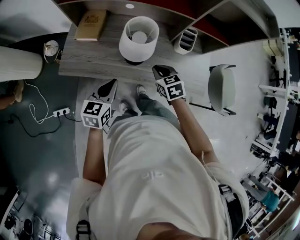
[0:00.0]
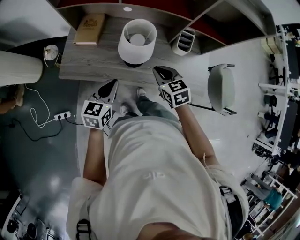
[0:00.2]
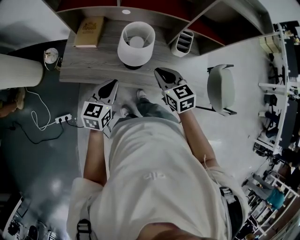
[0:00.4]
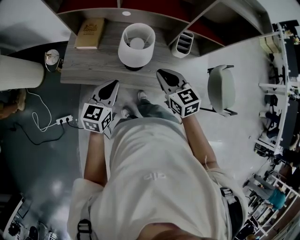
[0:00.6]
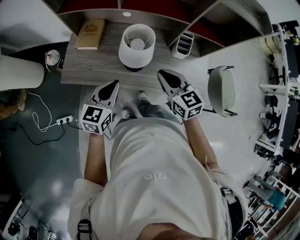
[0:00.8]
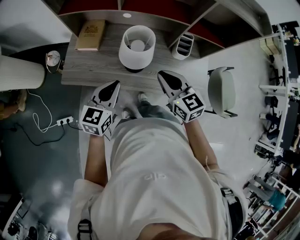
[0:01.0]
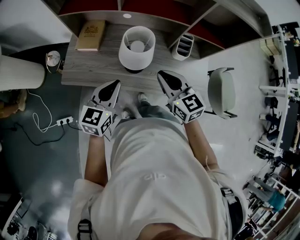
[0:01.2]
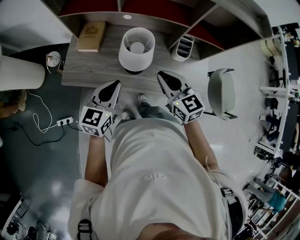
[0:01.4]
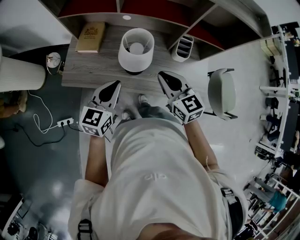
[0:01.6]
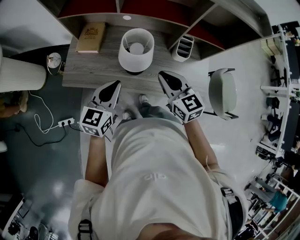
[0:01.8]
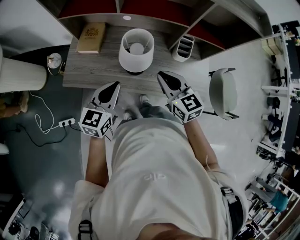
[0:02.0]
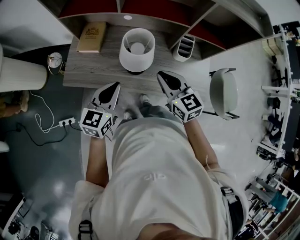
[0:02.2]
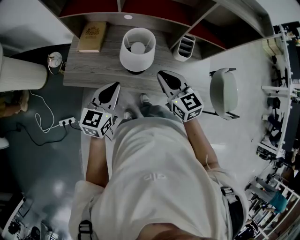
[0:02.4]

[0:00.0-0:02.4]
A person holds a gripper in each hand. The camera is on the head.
0:00.0 to 0:01.2: The left gripper shifts roughly 10 cm upward; the right gripper is displaced upward by approximately 15 cm, and turns by some 30 degrees.
0:01.2 to 0:02.4: The grippers move only a little.

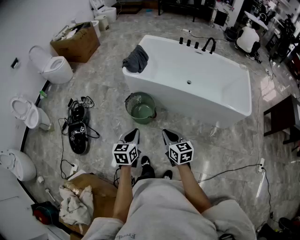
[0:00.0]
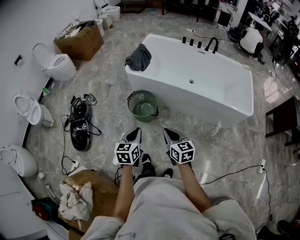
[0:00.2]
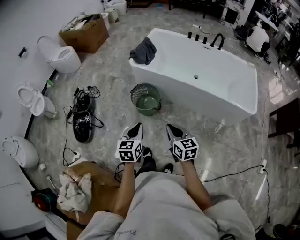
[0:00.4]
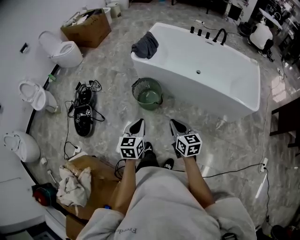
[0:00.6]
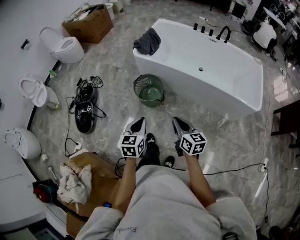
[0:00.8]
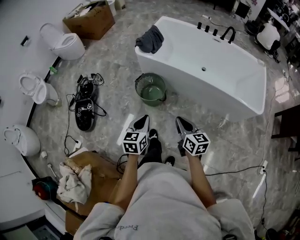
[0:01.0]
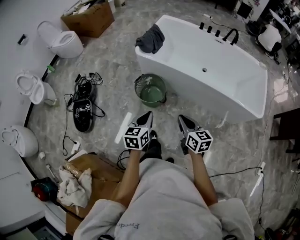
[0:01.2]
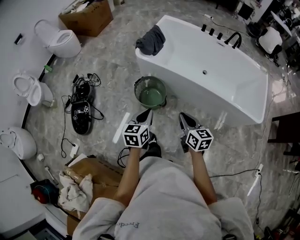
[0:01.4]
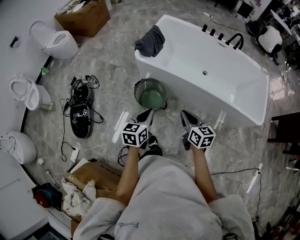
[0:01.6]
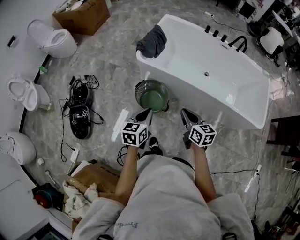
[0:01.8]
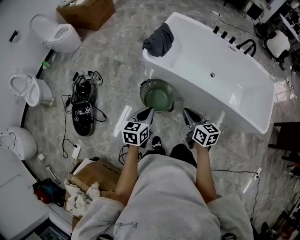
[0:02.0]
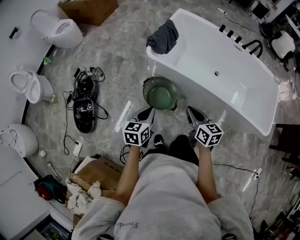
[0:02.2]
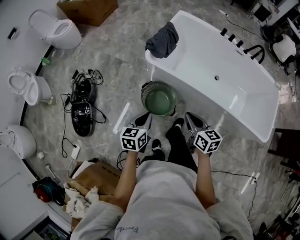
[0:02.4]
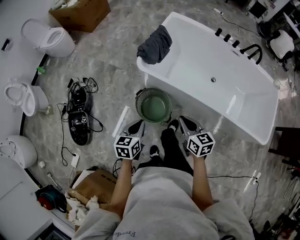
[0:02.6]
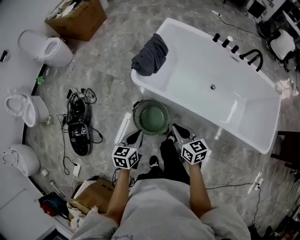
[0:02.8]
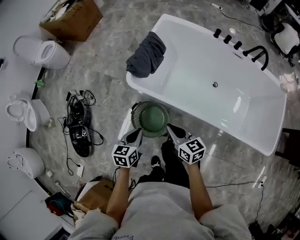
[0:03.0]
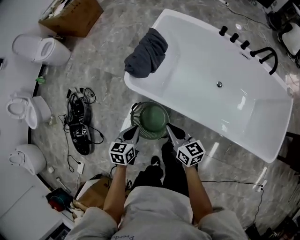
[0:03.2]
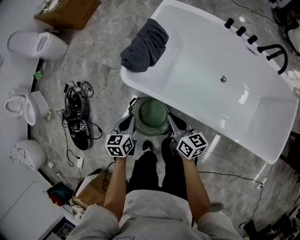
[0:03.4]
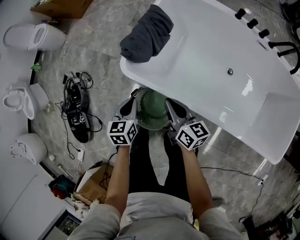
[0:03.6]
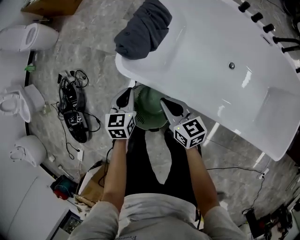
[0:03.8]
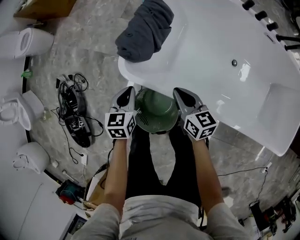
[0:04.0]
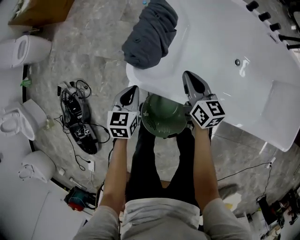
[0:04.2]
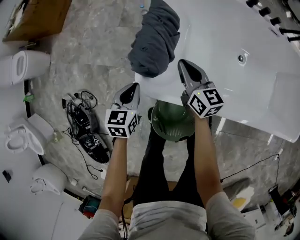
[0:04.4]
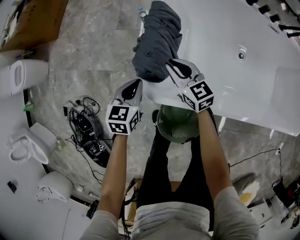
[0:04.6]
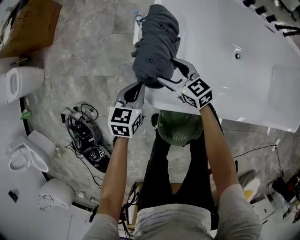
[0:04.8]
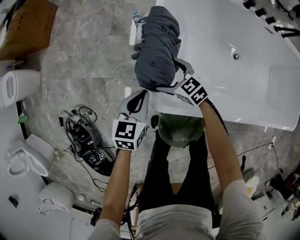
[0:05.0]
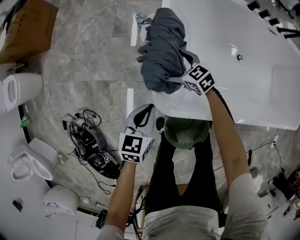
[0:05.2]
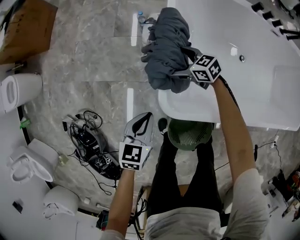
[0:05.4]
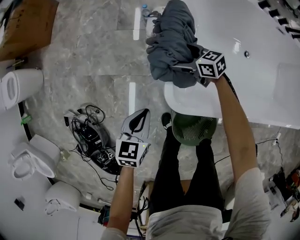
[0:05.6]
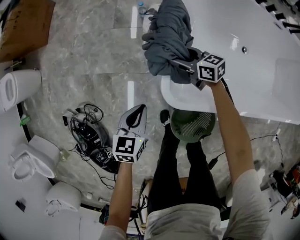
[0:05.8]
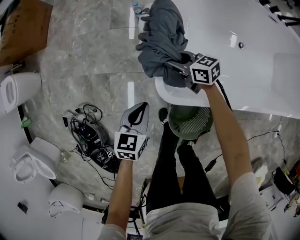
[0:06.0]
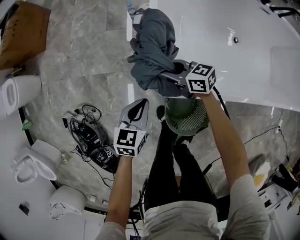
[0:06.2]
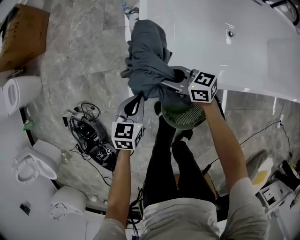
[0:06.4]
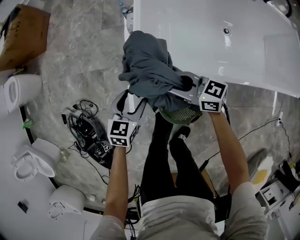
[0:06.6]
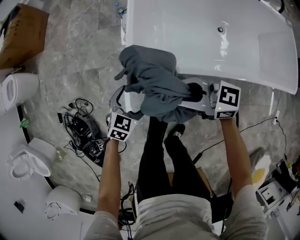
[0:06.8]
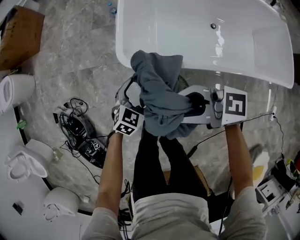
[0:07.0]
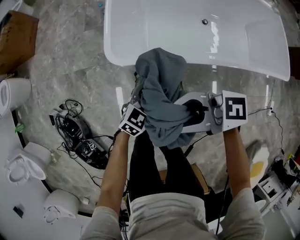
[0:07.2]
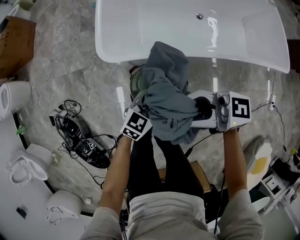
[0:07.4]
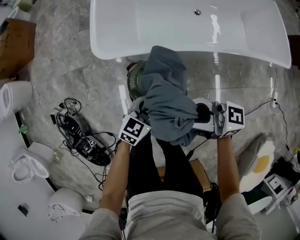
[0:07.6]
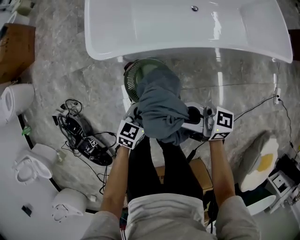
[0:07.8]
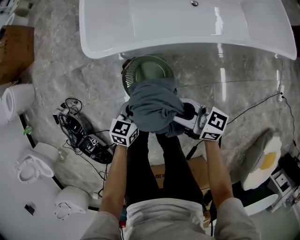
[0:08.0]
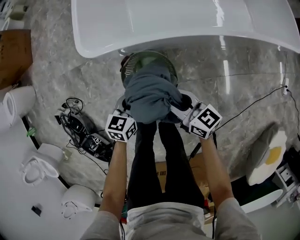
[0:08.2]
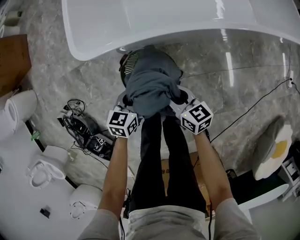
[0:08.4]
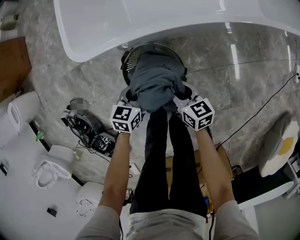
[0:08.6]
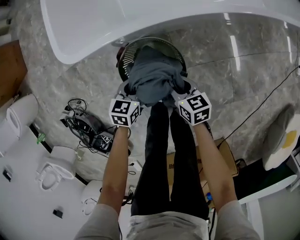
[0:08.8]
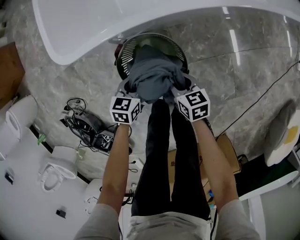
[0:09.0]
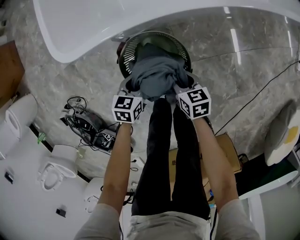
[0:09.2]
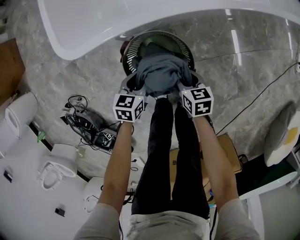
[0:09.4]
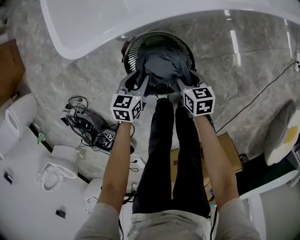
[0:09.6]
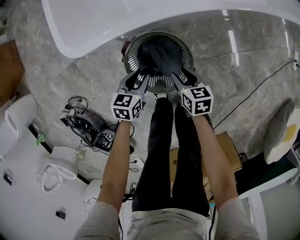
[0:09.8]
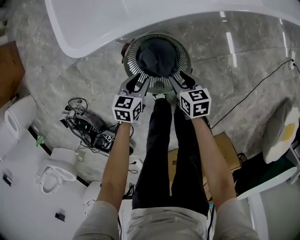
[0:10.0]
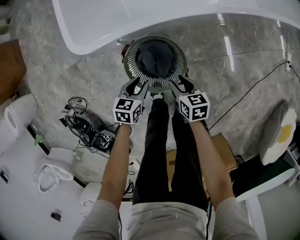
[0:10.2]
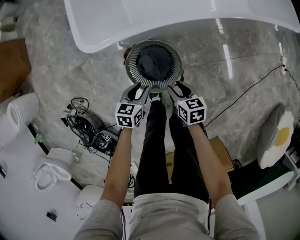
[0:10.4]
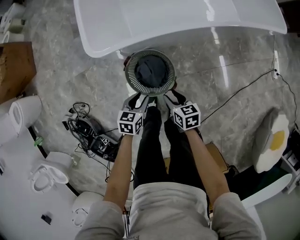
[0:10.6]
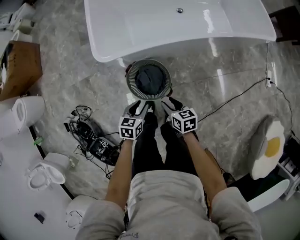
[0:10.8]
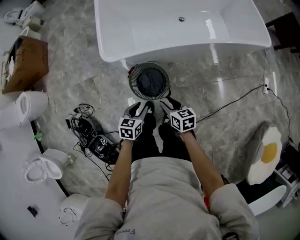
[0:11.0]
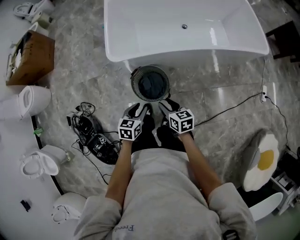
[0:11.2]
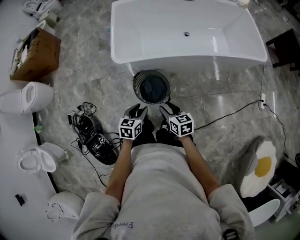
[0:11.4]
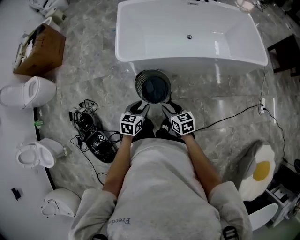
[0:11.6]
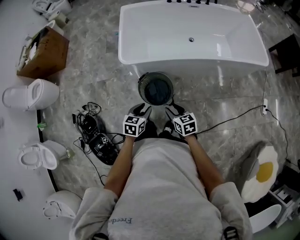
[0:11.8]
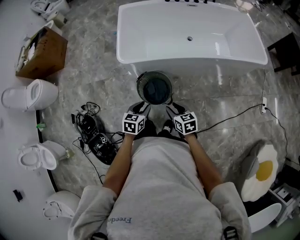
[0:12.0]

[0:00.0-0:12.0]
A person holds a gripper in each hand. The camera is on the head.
0:00.0 to 0:01.6: The two grippers go about 15 cm forward.
0:01.6 to 0:03.0: The left gripper shifts approximately 30 cm forward and downward; the right gripper is displaced forward by approximately 30 cm.
0:03.0 to 0:04.4: The grippers both shift forward by some 35 cm. The right gripper turns by about 20 degrees.
0:04.4 to 0:06.0: The left gripper goes about 5 cm to the left; the right gripper is displaced to the left, downward and forward by some 20 cm, swivels some 30 degrees, and opens, then closes again.
0:06.0 to 0:07.6: The two grippers travel together, some 40 cm. The right gripper angles its fingers upward, by roughly 40 degrees, while the left gripper turns by about 30 degrees, and opens, then closes again.
0:07.6 to 0:09.0: The left gripper moves downward, about 25 cm, and changes its angle by approximately 20 degrees. The right gripper is displaced downward by approximately 40 cm, and tilts its fingers approximately 60 degrees downward.
0:09.0 to 0:10.4: The right gripper goes approximately 10 cm upward. Meanwhile the left gripper shifts roughly 10 cm upward and backward.
0:10.4 to 0:12.0: Both grippers travel together upward and backward, some 30 cm. The right gripper rotates roughly 20 degrees.

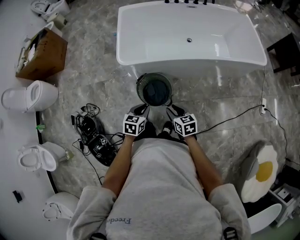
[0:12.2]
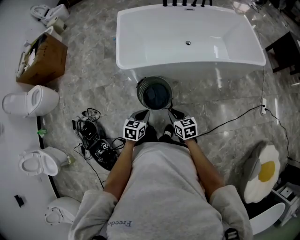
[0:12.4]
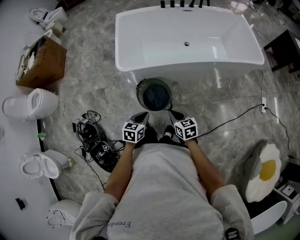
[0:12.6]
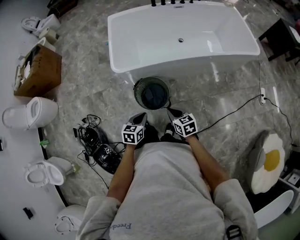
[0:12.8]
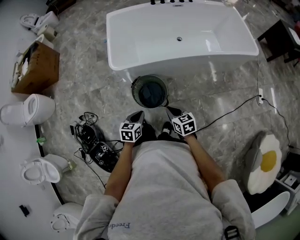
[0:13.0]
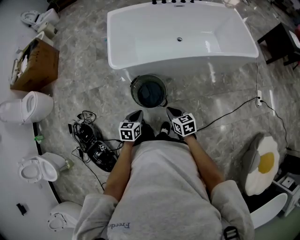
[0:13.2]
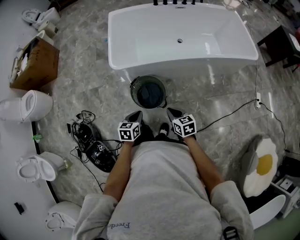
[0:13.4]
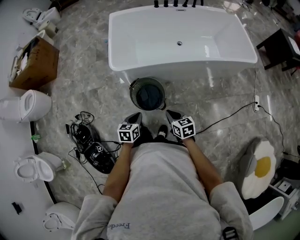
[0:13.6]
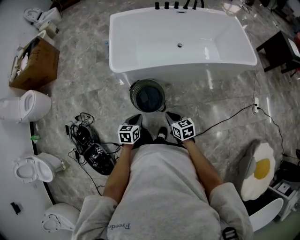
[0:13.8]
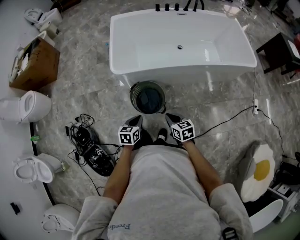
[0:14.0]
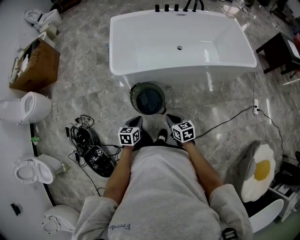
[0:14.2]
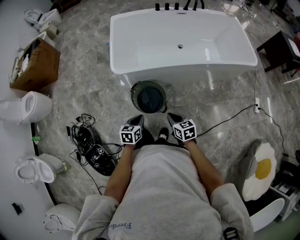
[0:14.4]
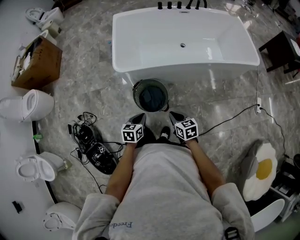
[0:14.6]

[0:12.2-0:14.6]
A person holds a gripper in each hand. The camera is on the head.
0:12.2 to 0:13.4: The grippers stay close to where they were, moving slightly.
0:13.4 to 0:14.6: Both grippers stay about where they are.

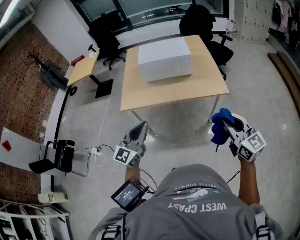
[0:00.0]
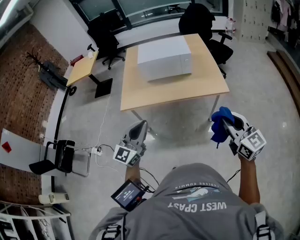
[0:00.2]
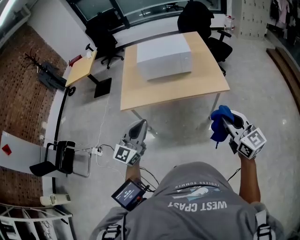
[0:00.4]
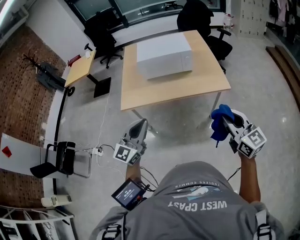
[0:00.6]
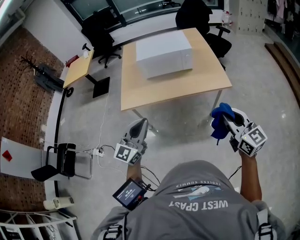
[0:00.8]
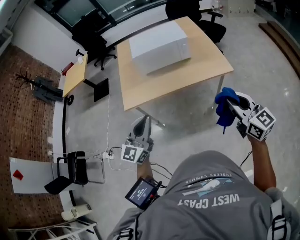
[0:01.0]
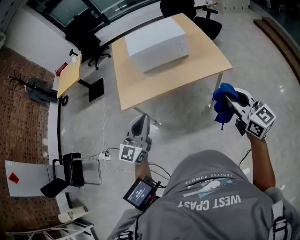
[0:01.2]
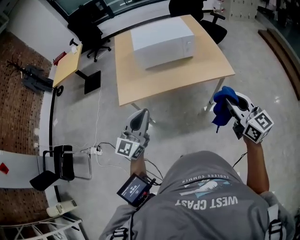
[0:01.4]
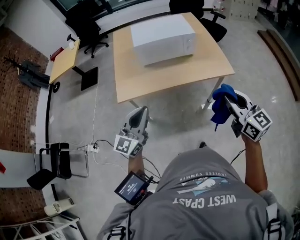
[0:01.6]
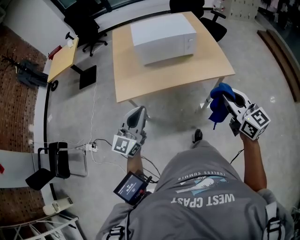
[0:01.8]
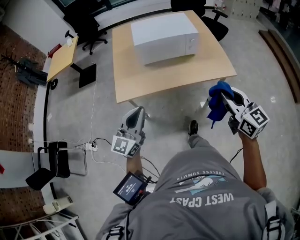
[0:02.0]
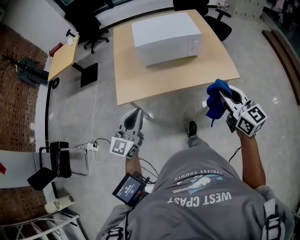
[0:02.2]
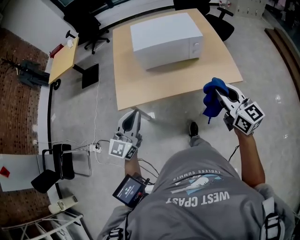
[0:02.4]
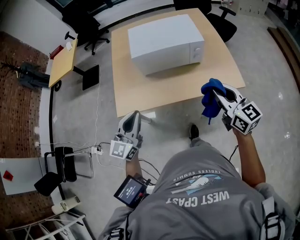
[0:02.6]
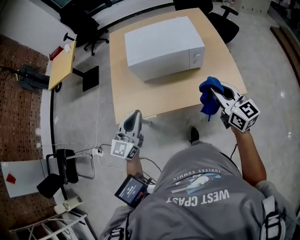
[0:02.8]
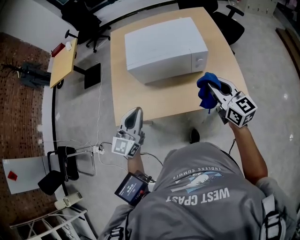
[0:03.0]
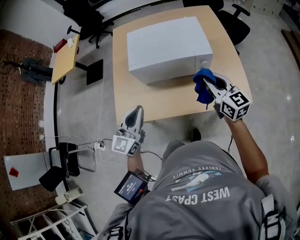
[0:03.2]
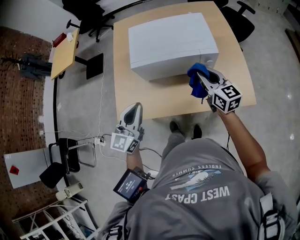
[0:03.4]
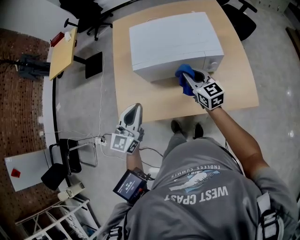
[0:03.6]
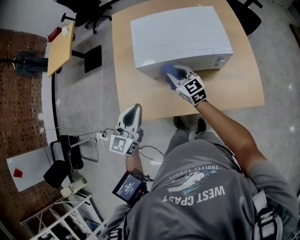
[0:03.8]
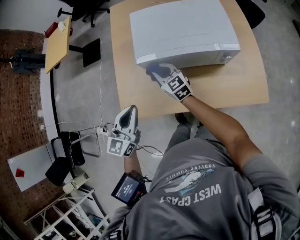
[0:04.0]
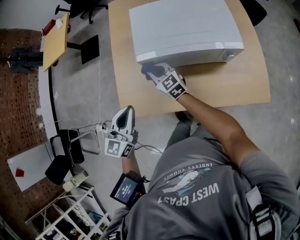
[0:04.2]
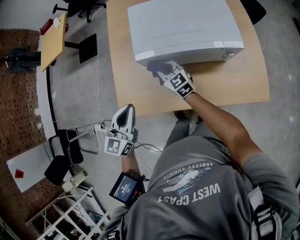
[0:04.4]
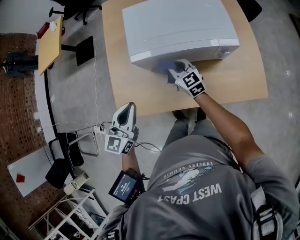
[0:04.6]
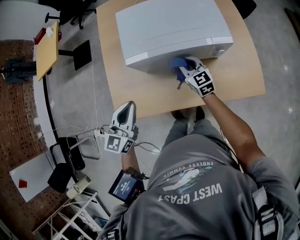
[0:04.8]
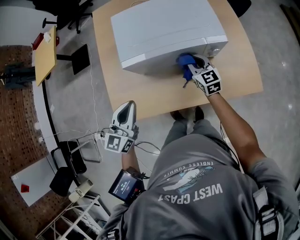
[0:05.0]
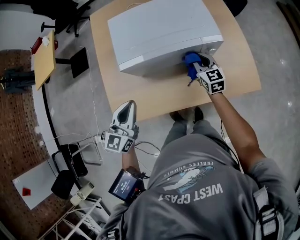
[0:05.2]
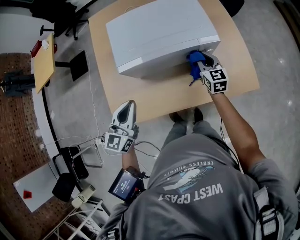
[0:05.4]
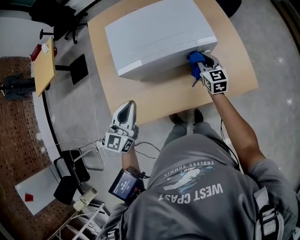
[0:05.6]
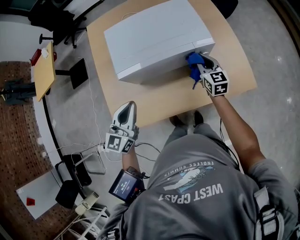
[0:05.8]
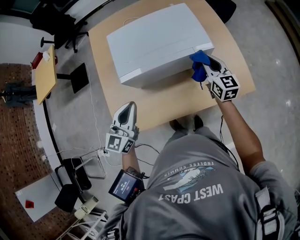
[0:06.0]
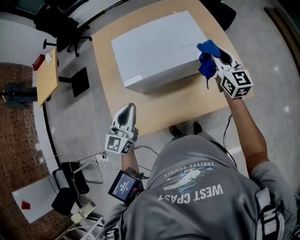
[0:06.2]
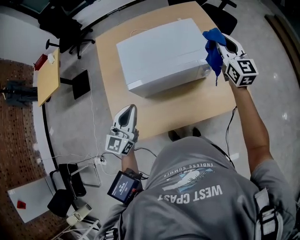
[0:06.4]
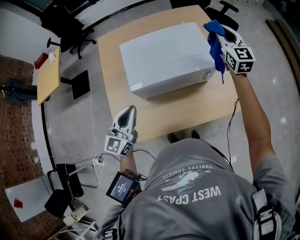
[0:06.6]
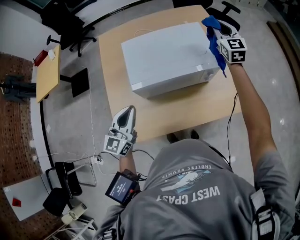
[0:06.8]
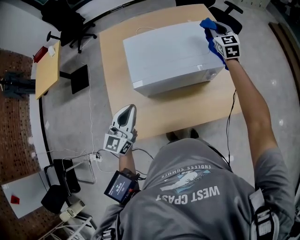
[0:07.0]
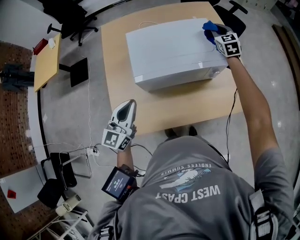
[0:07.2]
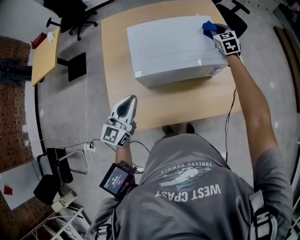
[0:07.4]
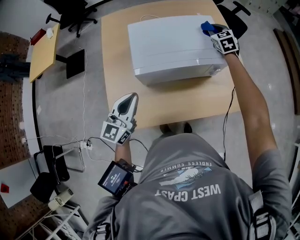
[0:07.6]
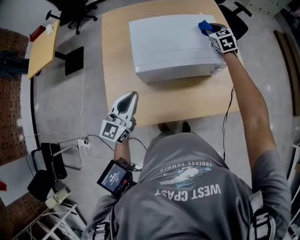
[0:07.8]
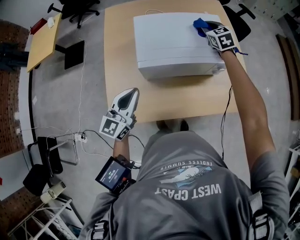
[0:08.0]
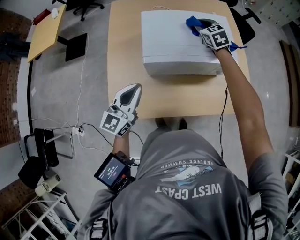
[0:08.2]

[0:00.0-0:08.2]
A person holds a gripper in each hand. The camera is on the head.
0:00.0 to 0:01.6: The left gripper moves to the left, forward and downward, approximately 15 cm; the right gripper shifts some 15 cm to the left and forward.
0:01.6 to 0:03.2: The grippers both shift forward by some 30 cm.
0:03.2 to 0:05.0: The right gripper moves downward and forward, roughly 25 cm, and goes to the left and returns, about 35 cm each way. The left gripper goes roughly 15 cm forward, downward and to the left.
0:05.0 to 0:06.6: The right gripper travels upward, to the right and forward by roughly 35 cm, and rotates approximately 30 degrees. The left gripper travels upward by some 5 cm.
0:06.6 to 0:08.2: The left gripper ends up some 5 cm from where it was. The right gripper moves to the left and downward, some 25 cm, and tips its fingers downward by roughly 30 degrees.
